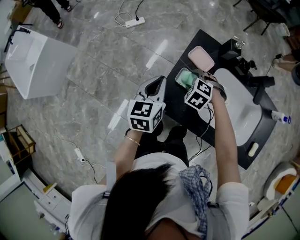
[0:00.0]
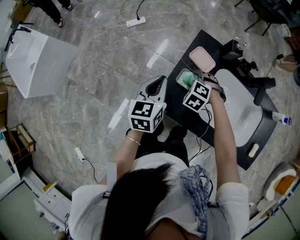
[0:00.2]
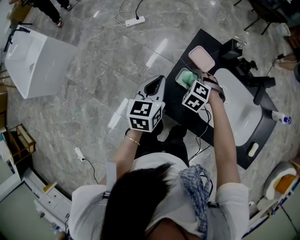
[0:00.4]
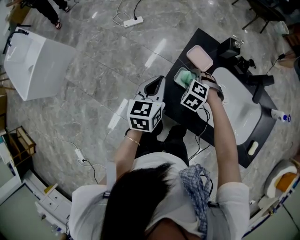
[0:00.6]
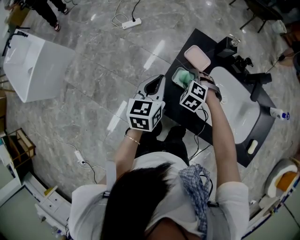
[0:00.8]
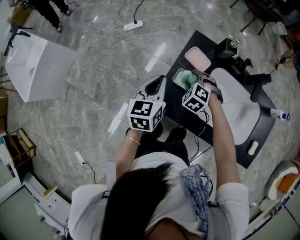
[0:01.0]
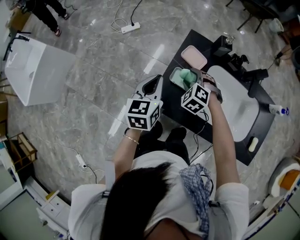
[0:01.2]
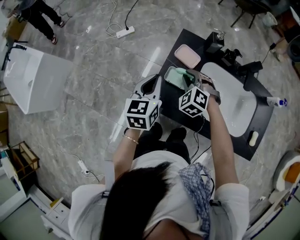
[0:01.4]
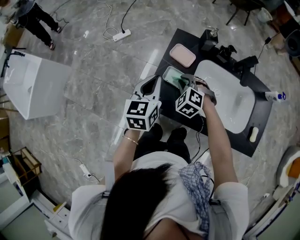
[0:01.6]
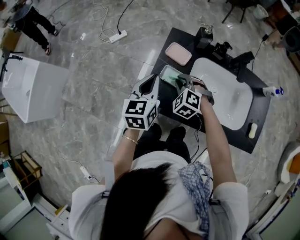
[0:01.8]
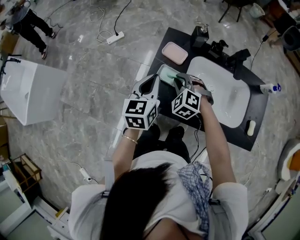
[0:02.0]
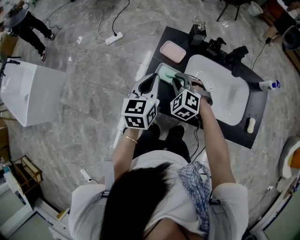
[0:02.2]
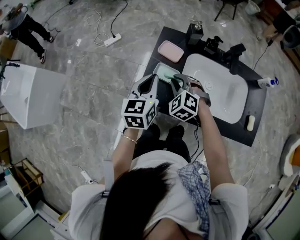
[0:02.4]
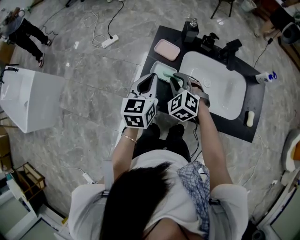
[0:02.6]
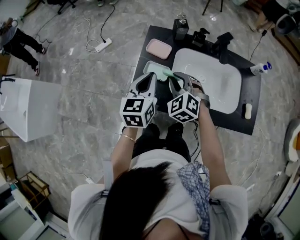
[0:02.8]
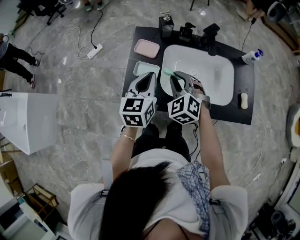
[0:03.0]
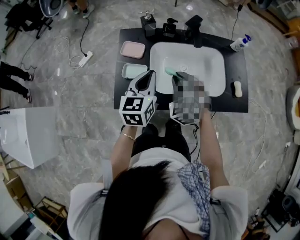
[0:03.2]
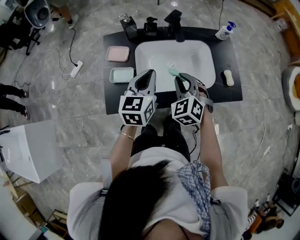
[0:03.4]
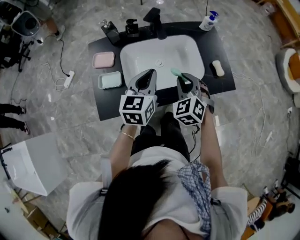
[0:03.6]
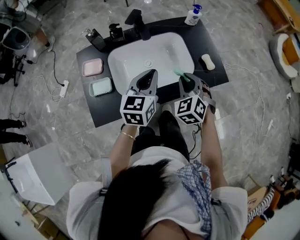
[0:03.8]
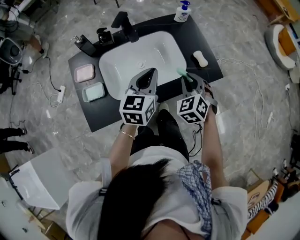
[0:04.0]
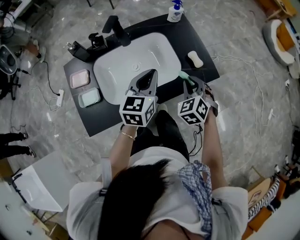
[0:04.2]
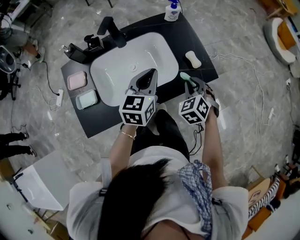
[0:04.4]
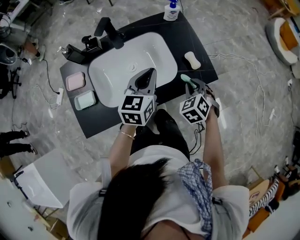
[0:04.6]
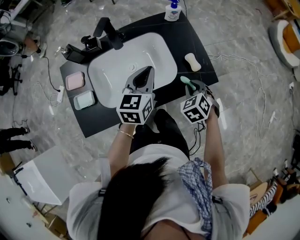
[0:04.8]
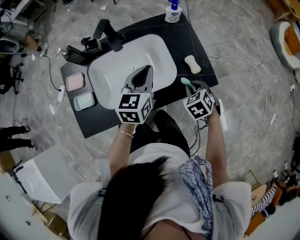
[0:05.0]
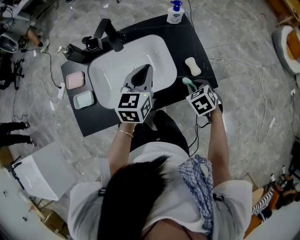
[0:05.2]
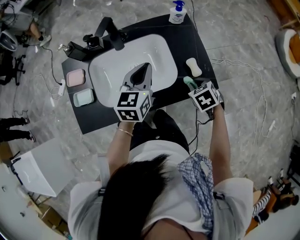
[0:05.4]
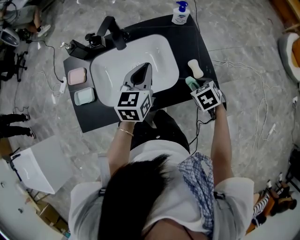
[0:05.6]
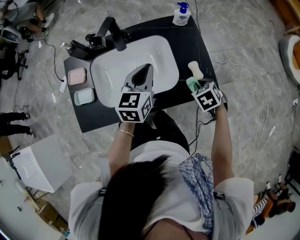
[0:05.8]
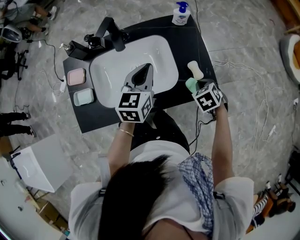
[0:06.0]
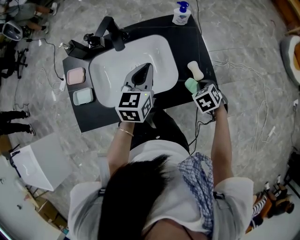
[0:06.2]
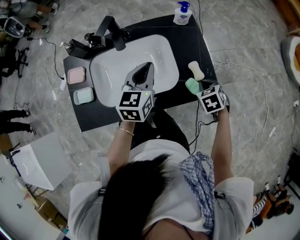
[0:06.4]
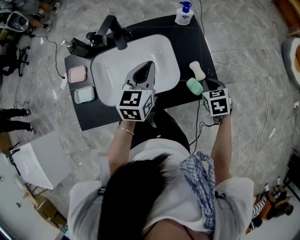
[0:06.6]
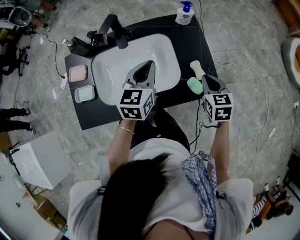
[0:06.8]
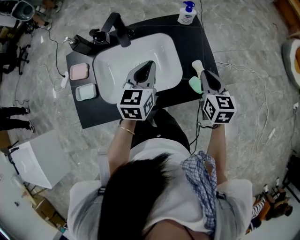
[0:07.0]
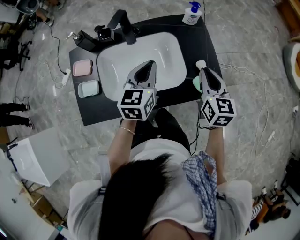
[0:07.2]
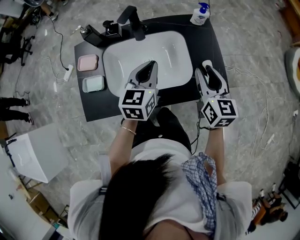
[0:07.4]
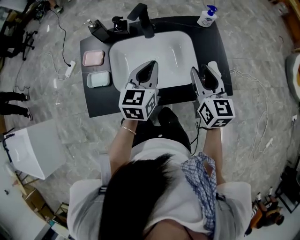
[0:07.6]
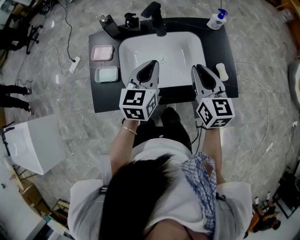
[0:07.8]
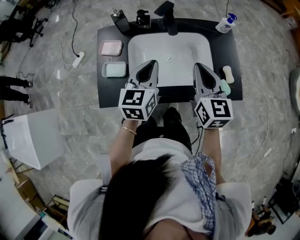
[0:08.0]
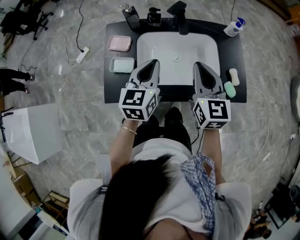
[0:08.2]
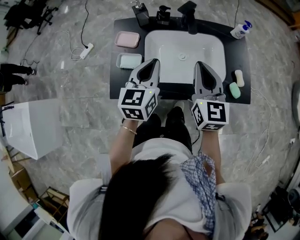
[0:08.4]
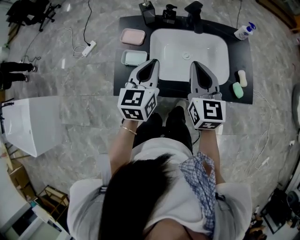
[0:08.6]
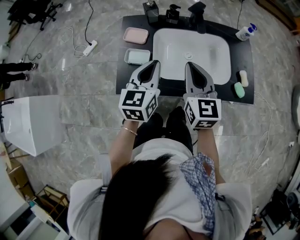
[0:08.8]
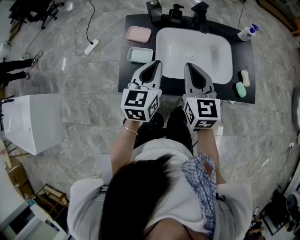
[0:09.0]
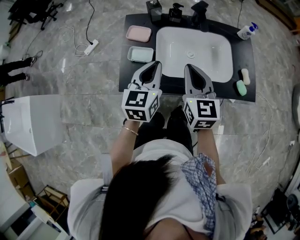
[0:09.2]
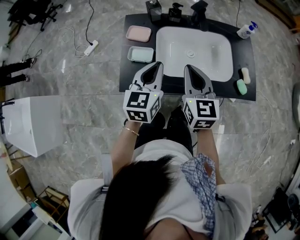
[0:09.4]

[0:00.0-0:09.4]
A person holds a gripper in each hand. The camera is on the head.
0:00.0 to 0:01.6: The right gripper shifts by about 5 cm, and closes. Meanwhile the left gripper changes place by roughly 5 cm.
0:01.6 to 0:03.2: The right gripper goes approximately 20 cm to the right, upward and backward, and rotates about 30 degrees. The left gripper travels to the right by some 15 cm, and changes its angle by approximately 20 degrees.
0:03.2 to 0:04.8: The right gripper moves about 35 cm, and turns by roughly 40 degrees. The left gripper ends up some 30 cm from where it was, and swivels approximately 20 degrees.
0:04.8 to 0:06.2: The right gripper moves to the right and forward, approximately 10 cm.
0:06.2 to 0:07.8: The left gripper is displaced to the left and backward by about 15 cm. The right gripper travels to the left and upward by about 30 cm, and tips its fingers upward by about 50 degrees.
0:07.8 to 0:09.4: The right gripper heads to the left, covering some 20 cm. Meanwhile the left gripper goes about 20 cm to the left and backward.

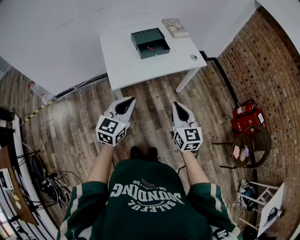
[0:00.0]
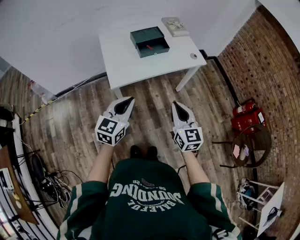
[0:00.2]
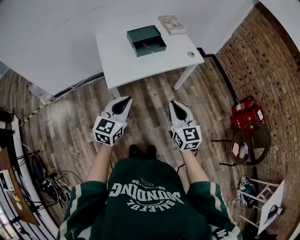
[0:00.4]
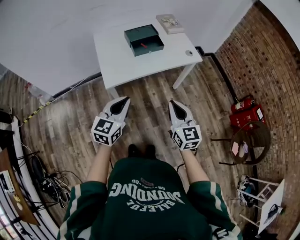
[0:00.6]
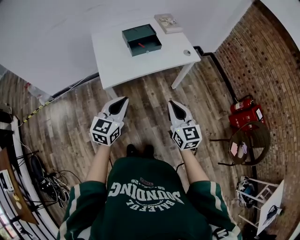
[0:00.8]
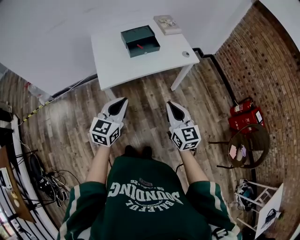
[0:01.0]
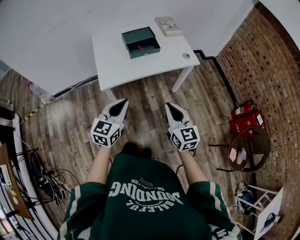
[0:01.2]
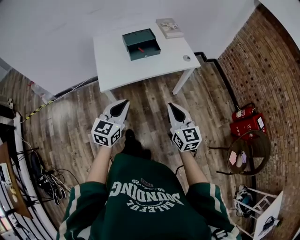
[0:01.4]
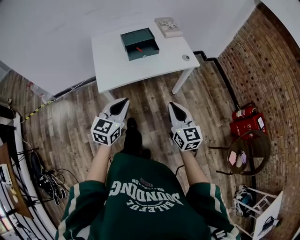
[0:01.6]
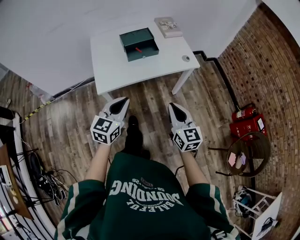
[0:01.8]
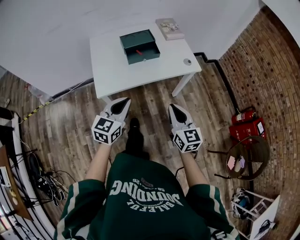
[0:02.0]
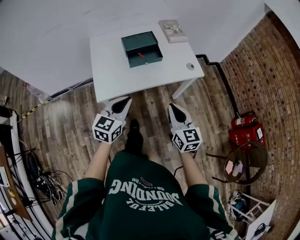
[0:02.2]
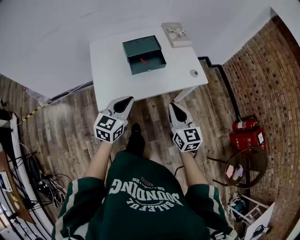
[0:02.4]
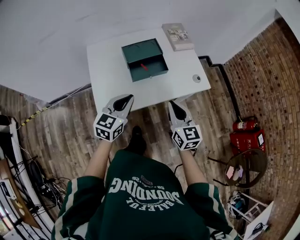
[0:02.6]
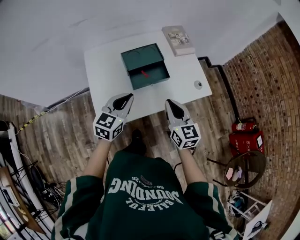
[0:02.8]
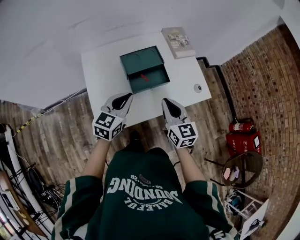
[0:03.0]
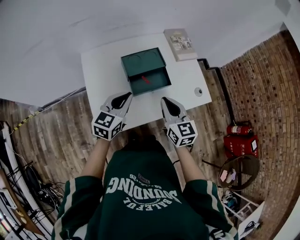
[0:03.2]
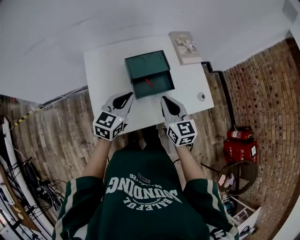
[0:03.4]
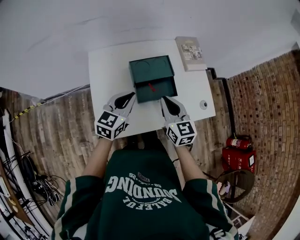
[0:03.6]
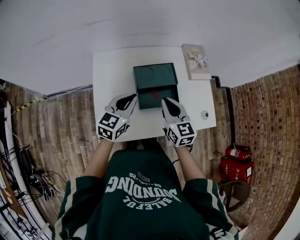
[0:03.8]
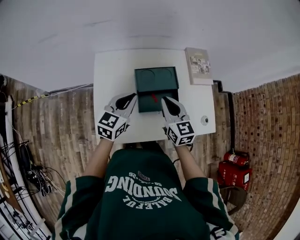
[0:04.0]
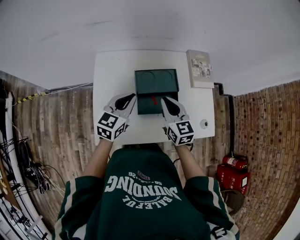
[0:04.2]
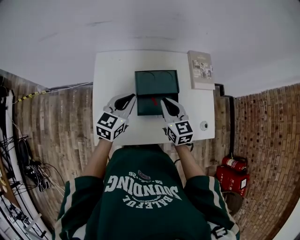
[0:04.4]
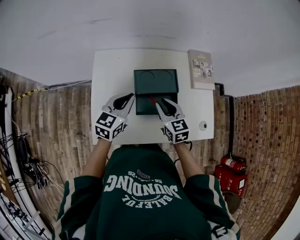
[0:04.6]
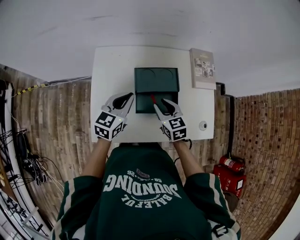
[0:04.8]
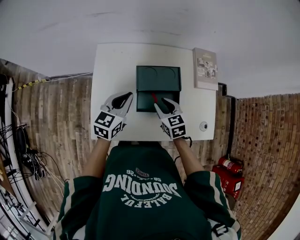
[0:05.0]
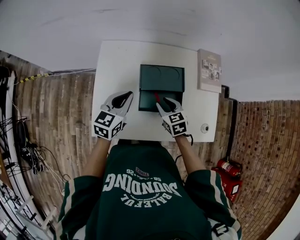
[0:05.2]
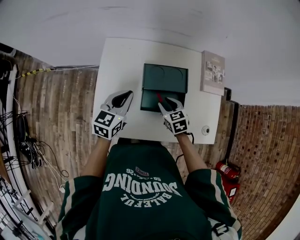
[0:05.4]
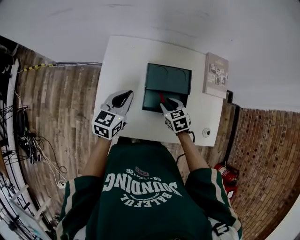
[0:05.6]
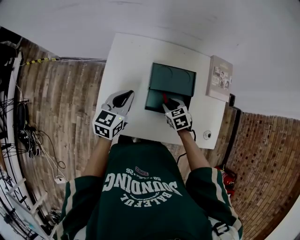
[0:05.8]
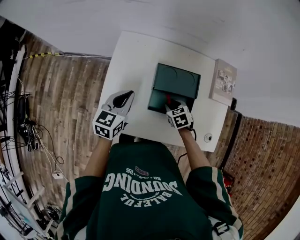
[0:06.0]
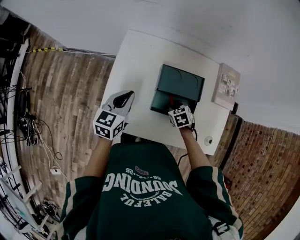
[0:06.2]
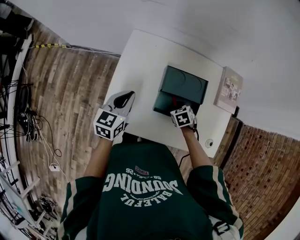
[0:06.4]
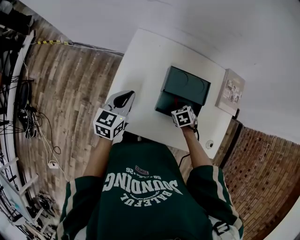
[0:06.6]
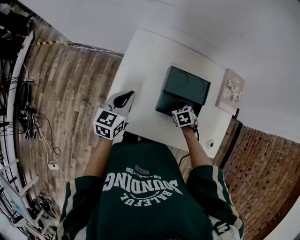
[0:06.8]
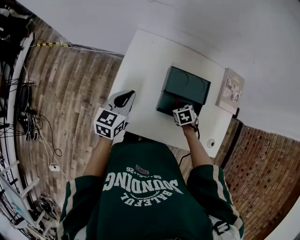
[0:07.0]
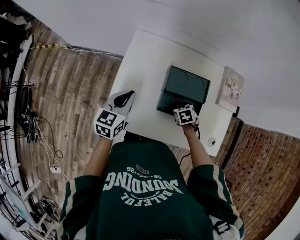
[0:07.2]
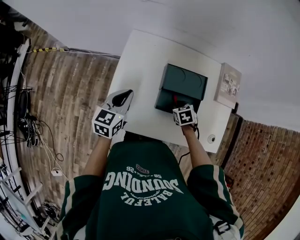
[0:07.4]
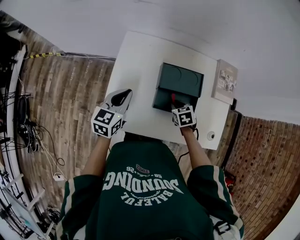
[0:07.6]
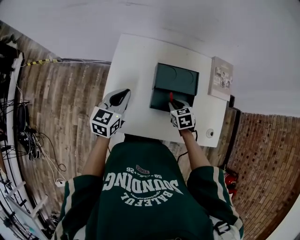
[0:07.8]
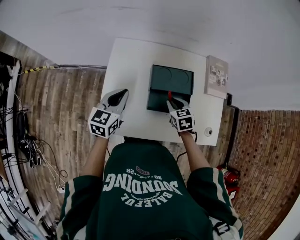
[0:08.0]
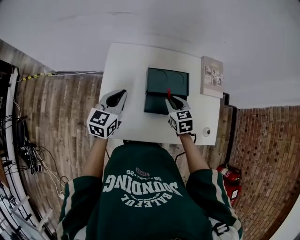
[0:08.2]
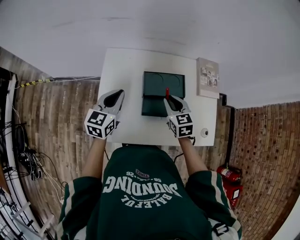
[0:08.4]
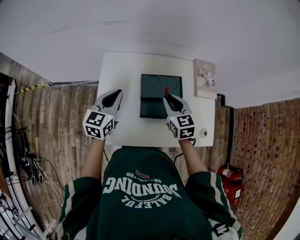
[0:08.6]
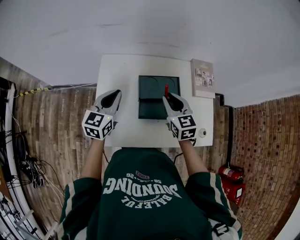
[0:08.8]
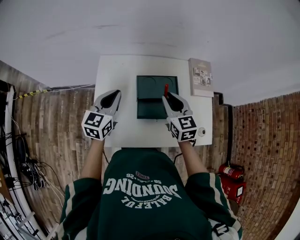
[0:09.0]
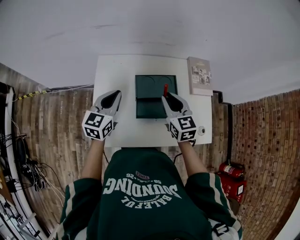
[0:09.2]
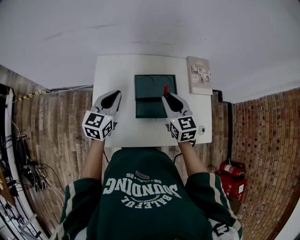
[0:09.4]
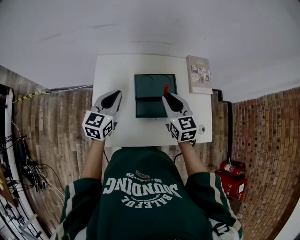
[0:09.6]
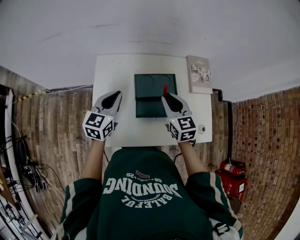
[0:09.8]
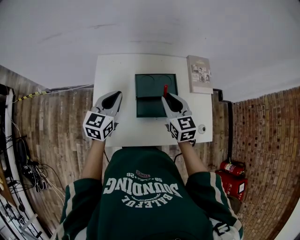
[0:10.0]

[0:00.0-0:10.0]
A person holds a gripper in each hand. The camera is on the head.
0:00.0 to 0:01.4: Both grippers travel together to the right, some 5 cm.
0:01.4 to 0:02.8: Both grippers move forward, approximately 30 cm.
0:02.8 to 0:04.2: Both grippers move forward, roughly 15 cm.
0:04.2 to 0:05.8: The right gripper shifts approximately 20 cm downward, tips its fingers downward by roughly 40 degrees, and opens. The left gripper travels to the left by about 5 cm.
0:05.8 to 0:07.2: The left gripper heads to the left, covering about 5 cm.
0:07.2 to 0:08.6: The right gripper travels upward by roughly 20 cm, and tilts its fingers some 40 degrees upward; the left gripper travels upward by roughly 5 cm.
0:08.6 to 0:10.0: The grippers make only small movements.

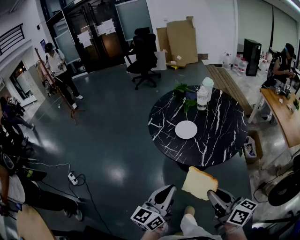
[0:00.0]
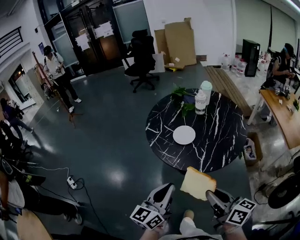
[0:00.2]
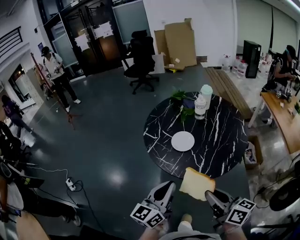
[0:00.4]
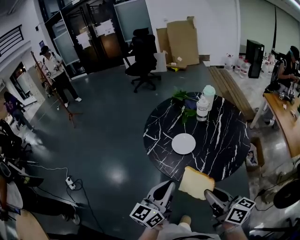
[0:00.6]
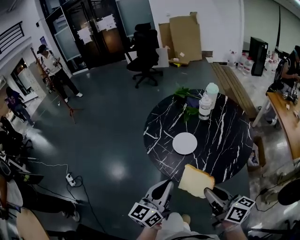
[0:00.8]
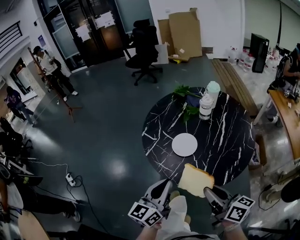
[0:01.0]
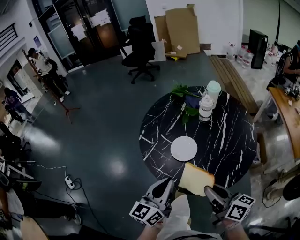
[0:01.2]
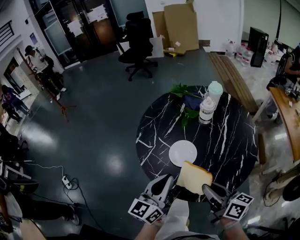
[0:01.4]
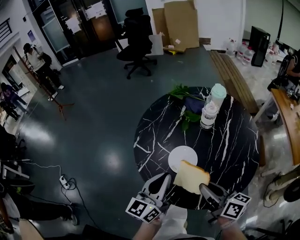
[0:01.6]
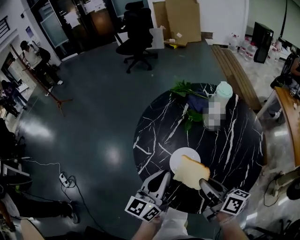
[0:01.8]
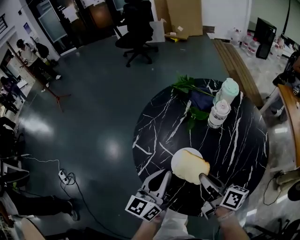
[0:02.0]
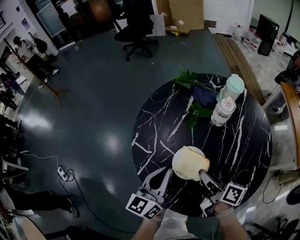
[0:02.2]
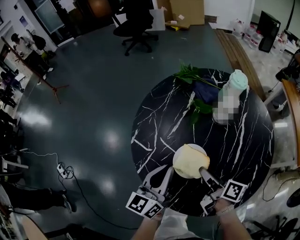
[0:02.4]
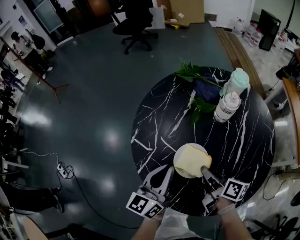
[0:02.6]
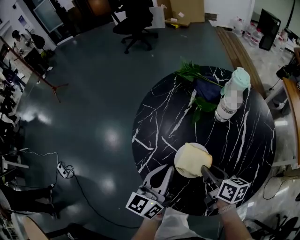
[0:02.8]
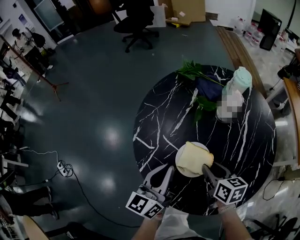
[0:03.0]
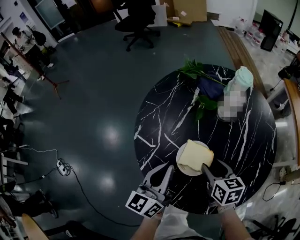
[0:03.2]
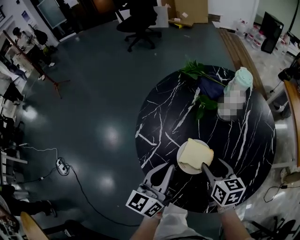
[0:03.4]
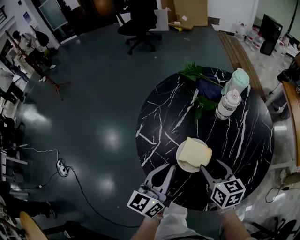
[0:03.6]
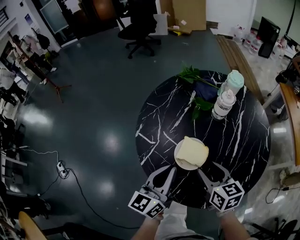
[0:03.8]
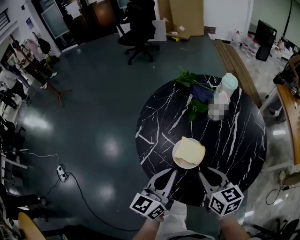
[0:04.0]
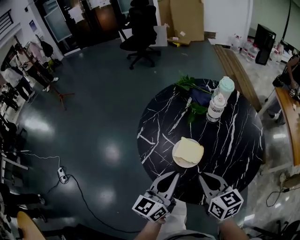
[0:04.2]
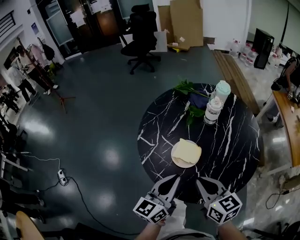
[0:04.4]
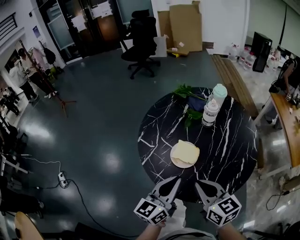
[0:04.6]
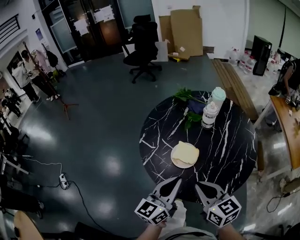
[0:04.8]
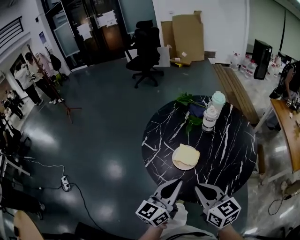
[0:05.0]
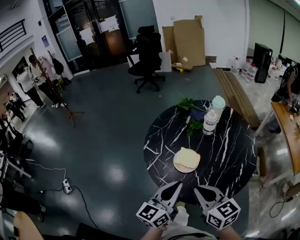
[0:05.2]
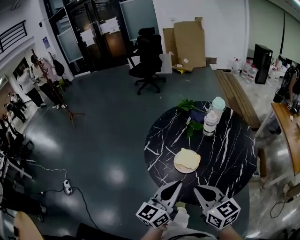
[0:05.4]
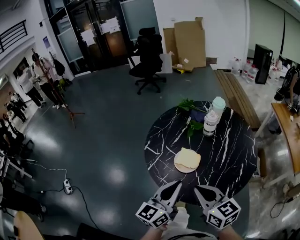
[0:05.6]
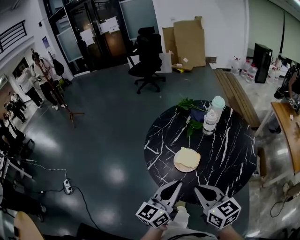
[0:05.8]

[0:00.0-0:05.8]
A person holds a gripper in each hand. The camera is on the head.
0:00.0 to 0:01.4: Both grippers travel together forward, roughly 25 cm.
0:01.4 to 0:02.8: The grippers both shift forward and downward by approximately 20 cm. The right gripper changes its angle by some 20 degrees.
0:02.8 to 0:04.4: The right gripper heads upward and backward, covering approximately 20 cm, changes its angle by roughly 30 degrees, and opens, then closes once more, while the left gripper travels backward and upward by roughly 15 cm.
0:04.4 to 0:05.8: The two grippers go some 10 cm upward and backward.
